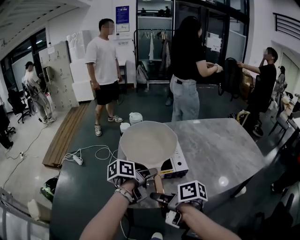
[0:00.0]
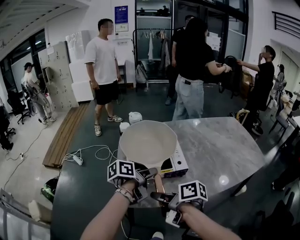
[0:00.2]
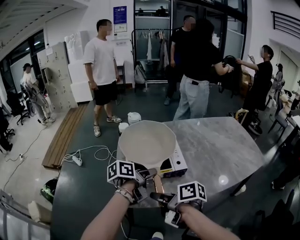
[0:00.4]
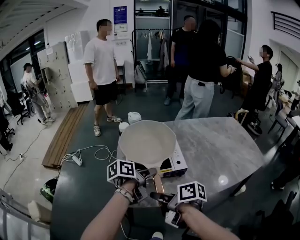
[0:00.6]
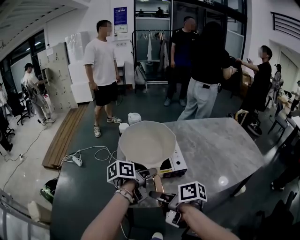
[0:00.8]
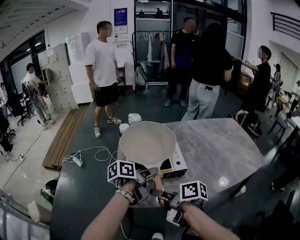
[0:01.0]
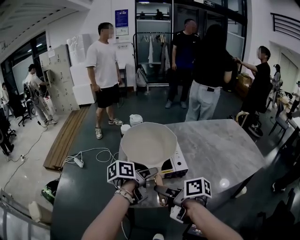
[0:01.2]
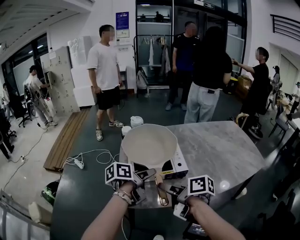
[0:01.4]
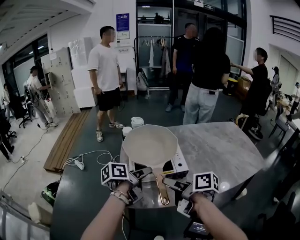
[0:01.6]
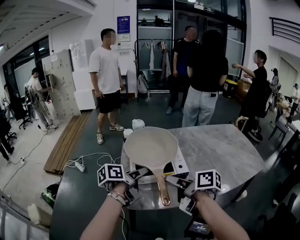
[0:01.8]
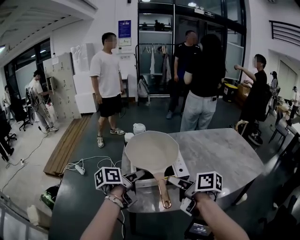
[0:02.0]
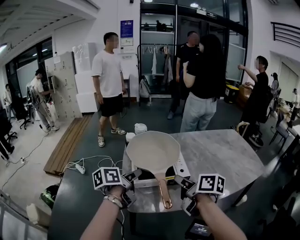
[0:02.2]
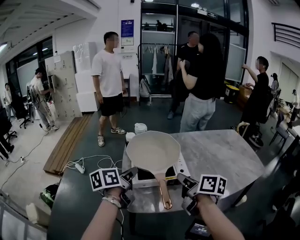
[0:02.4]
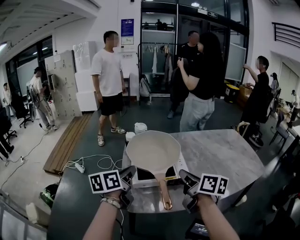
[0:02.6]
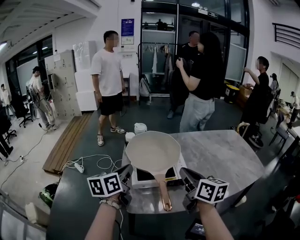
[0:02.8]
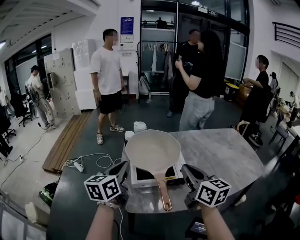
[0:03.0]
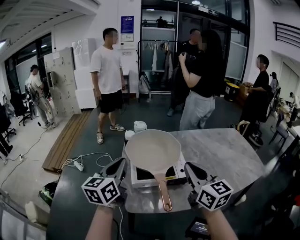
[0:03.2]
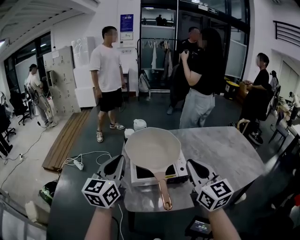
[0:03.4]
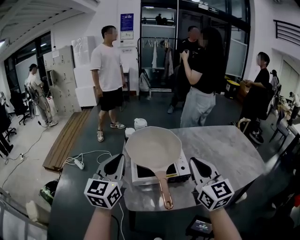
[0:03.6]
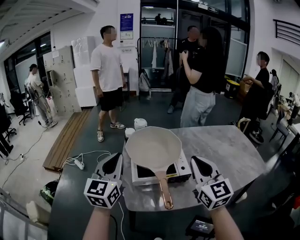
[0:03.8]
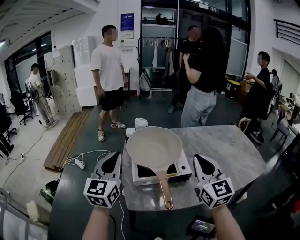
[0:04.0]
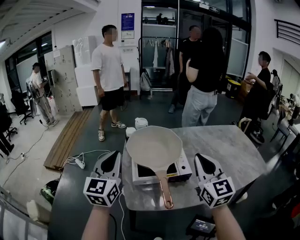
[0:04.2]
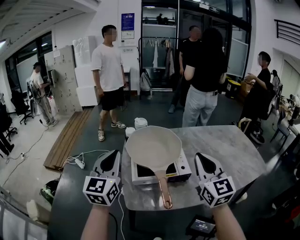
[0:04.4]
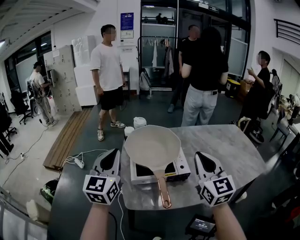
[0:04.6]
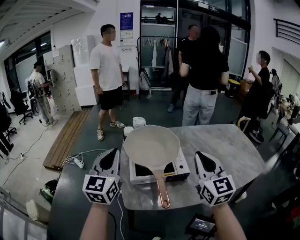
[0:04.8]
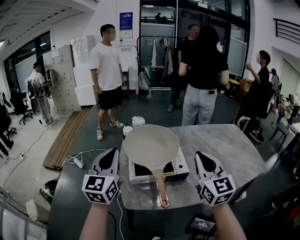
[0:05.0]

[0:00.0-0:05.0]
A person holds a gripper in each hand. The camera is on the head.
0:00.0 to 0:01.6: The right gripper shifts approximately 5 cm to the right, and opens its fingers.
0:01.6 to 0:03.4: The right gripper travels upward and to the right by roughly 10 cm, rotates around the line of its fingers by some 70 degrees, counterclockwise from behind, and closes its fingers; the left gripper travels upward and to the left by some 15 cm, rolls clockwise, seen from behind, by roughly 50 degrees, and closes its fingers.
0:03.4 to 0:05.0: The grippers make only small movements.

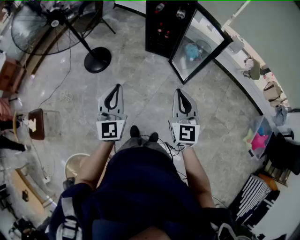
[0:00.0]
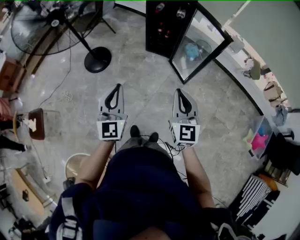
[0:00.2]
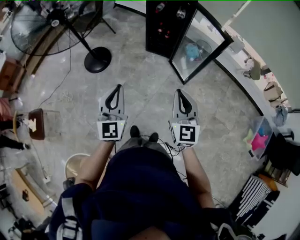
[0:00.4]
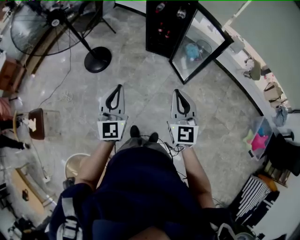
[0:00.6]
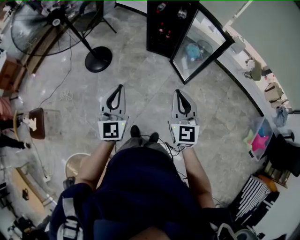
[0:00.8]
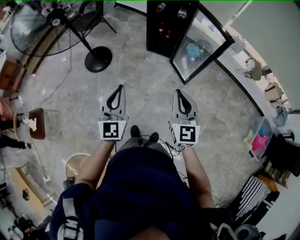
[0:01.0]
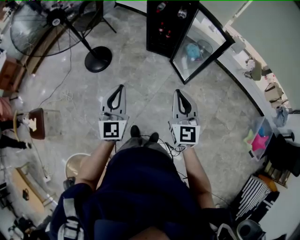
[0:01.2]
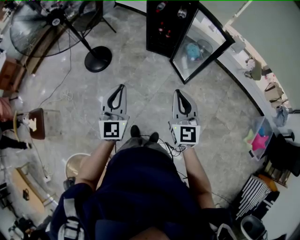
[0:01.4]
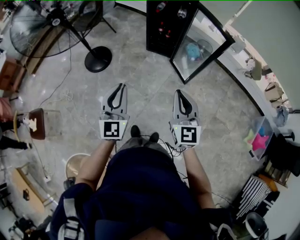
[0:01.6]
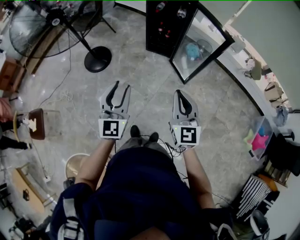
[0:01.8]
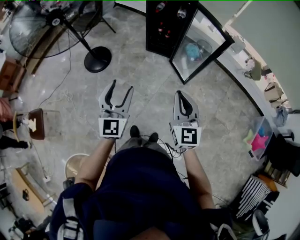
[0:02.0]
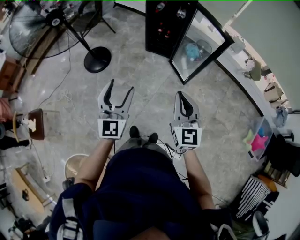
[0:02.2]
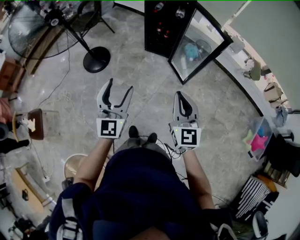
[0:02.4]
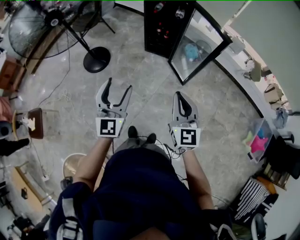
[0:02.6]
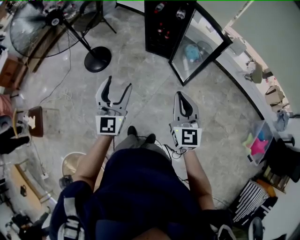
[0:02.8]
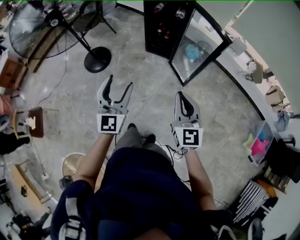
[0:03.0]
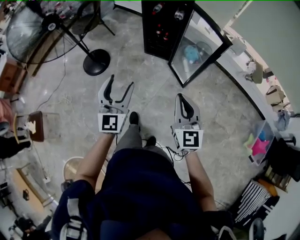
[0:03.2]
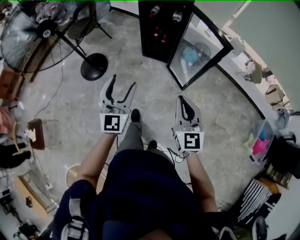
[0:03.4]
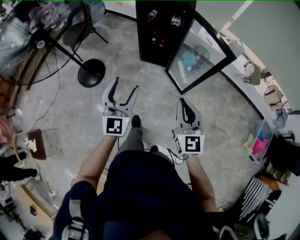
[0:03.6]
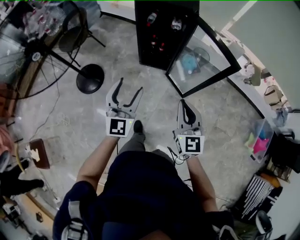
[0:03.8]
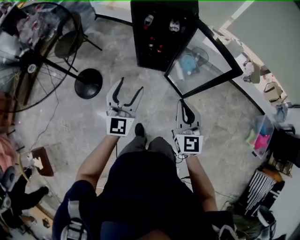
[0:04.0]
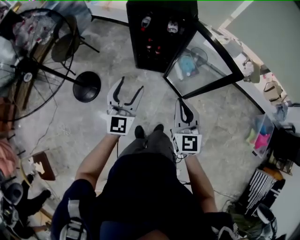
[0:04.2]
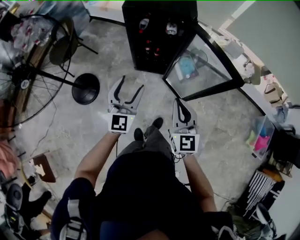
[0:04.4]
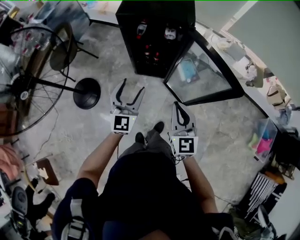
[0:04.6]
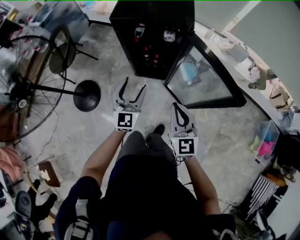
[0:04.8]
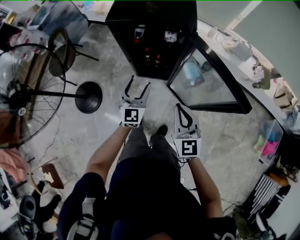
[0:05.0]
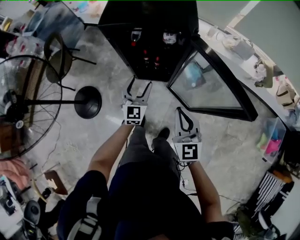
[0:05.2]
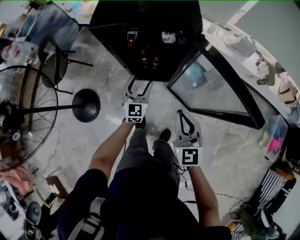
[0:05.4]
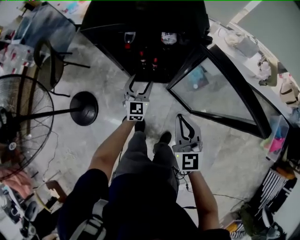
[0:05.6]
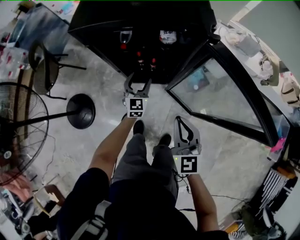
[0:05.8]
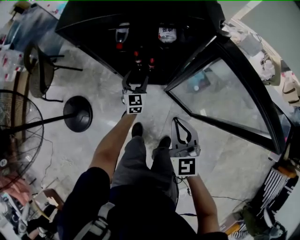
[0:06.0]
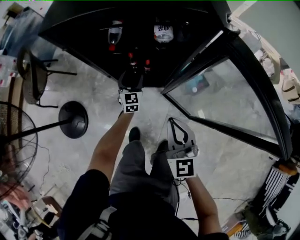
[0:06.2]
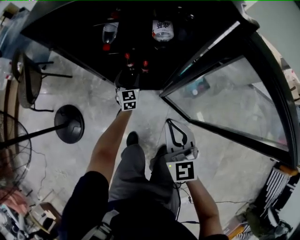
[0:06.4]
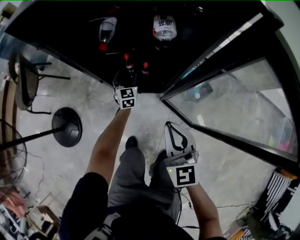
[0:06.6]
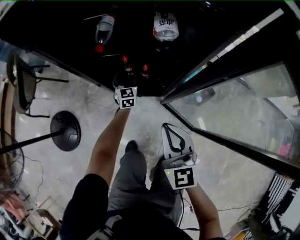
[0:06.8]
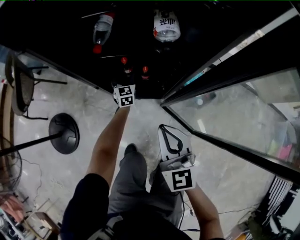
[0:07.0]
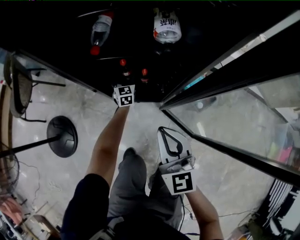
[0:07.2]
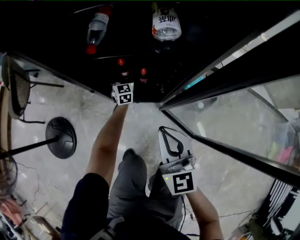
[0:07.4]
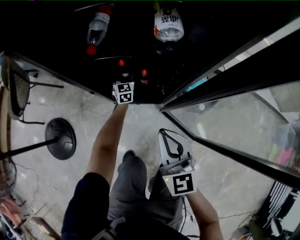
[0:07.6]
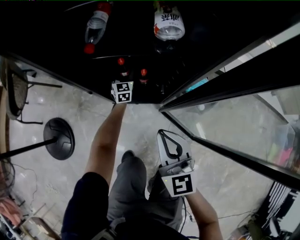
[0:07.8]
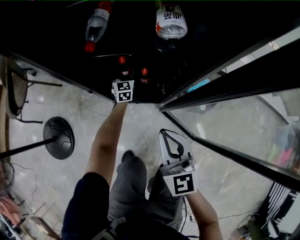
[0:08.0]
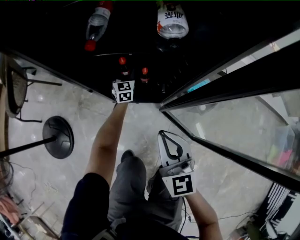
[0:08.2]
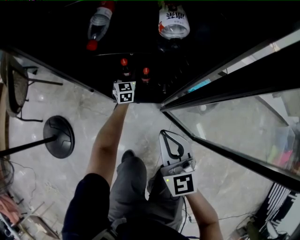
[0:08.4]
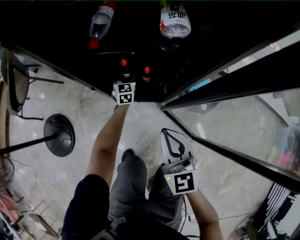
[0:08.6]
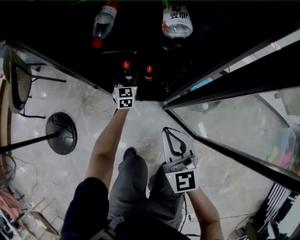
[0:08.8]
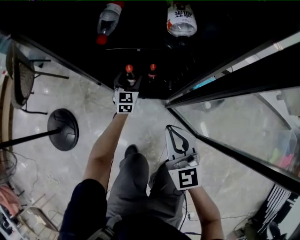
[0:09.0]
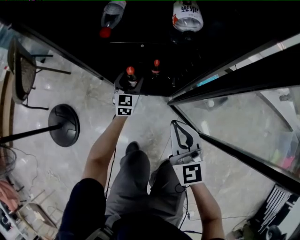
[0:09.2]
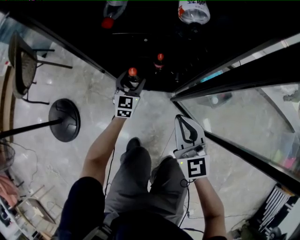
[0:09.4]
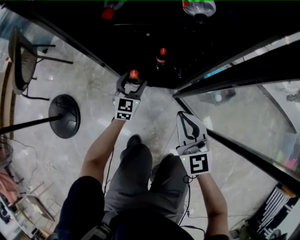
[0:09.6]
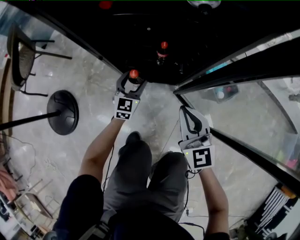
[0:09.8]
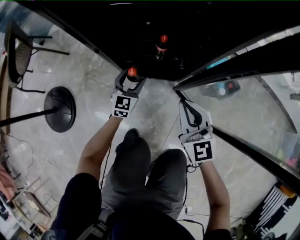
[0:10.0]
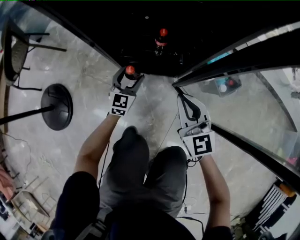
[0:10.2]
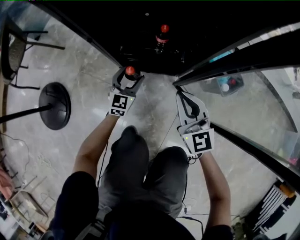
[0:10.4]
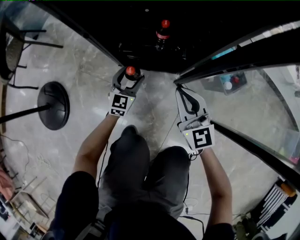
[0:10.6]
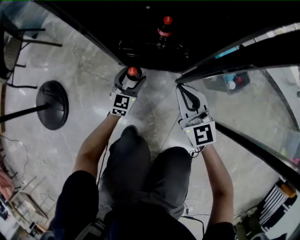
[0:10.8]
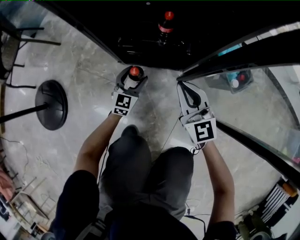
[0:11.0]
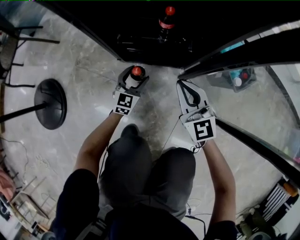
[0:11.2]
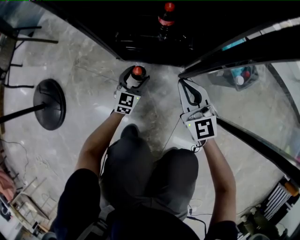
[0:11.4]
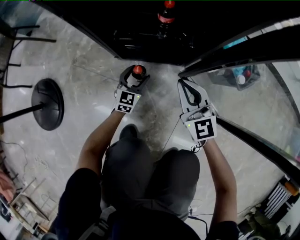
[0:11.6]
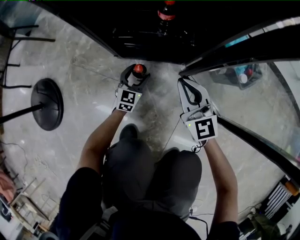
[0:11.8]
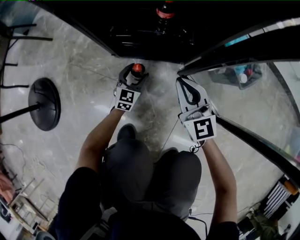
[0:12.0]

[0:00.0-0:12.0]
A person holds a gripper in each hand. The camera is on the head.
0:00.0 to 0:01.6: The grippers stay close to where they were, moving slightly.
0:01.6 to 0:03.0: The grippers both shift to the right by some 5 cm. The left gripper opens its fingers.
0:03.0 to 0:04.4: The two grippers go roughly 35 cm forward.
0:04.4 to 0:06.0: The left gripper is displaced downward and forward by about 60 cm; the right gripper heads downward and forward, covering about 30 cm.
0:06.0 to 0:07.6: The right gripper goes some 20 cm downward and forward. The left gripper moves downward and forward, about 35 cm.
0:07.6 to 0:09.0: The left gripper shifts approximately 5 cm backward.
0:09.0 to 0:10.4: The left gripper is displaced backward and downward by approximately 20 cm; the right gripper travels downward by some 15 cm.
0:10.4 to 0:12.0: Both grippers travel together downward, roughly 15 cm.

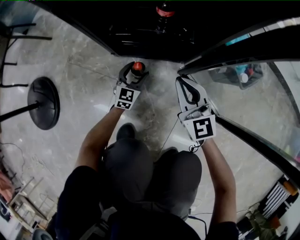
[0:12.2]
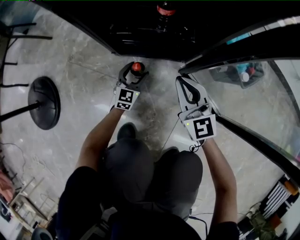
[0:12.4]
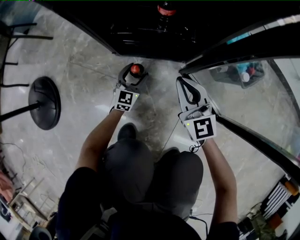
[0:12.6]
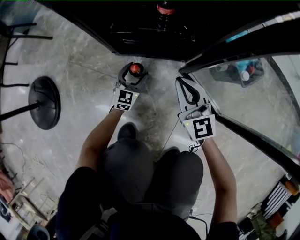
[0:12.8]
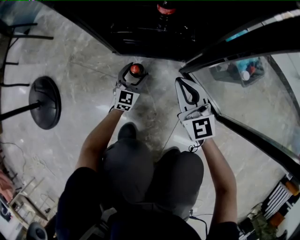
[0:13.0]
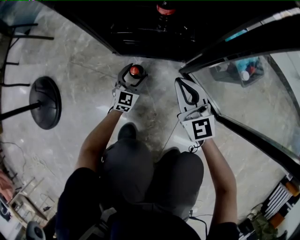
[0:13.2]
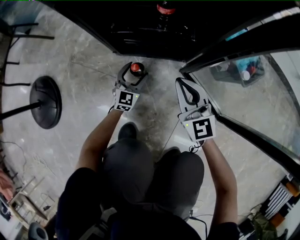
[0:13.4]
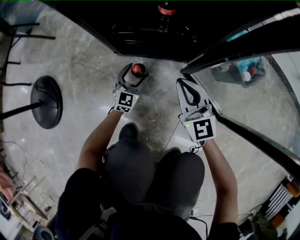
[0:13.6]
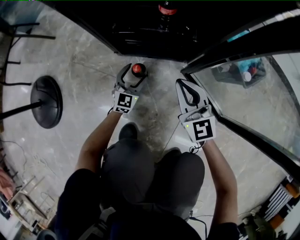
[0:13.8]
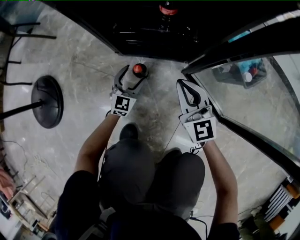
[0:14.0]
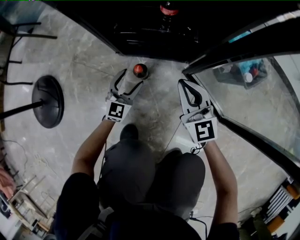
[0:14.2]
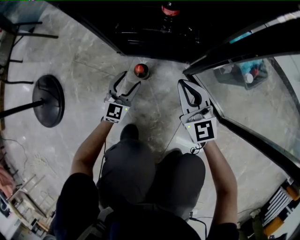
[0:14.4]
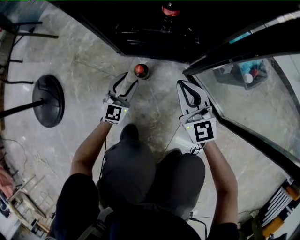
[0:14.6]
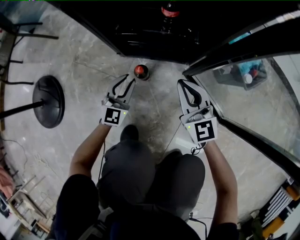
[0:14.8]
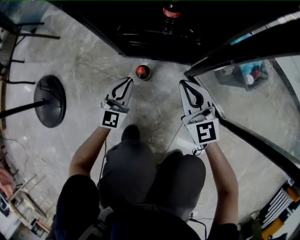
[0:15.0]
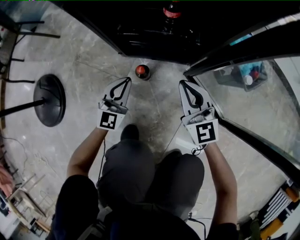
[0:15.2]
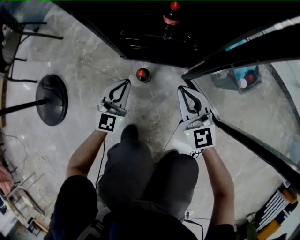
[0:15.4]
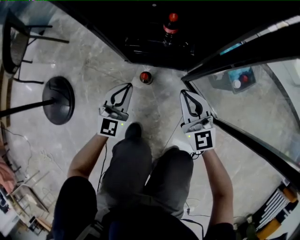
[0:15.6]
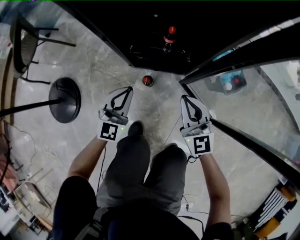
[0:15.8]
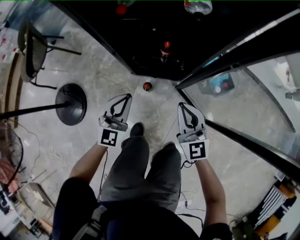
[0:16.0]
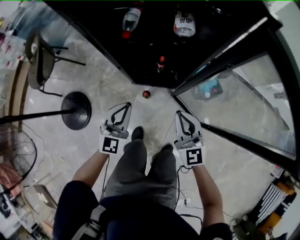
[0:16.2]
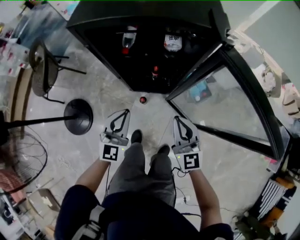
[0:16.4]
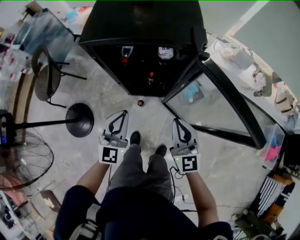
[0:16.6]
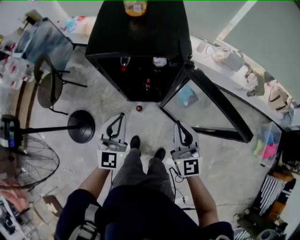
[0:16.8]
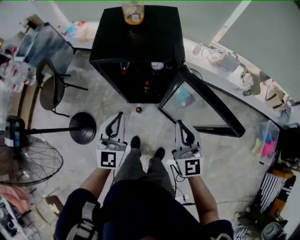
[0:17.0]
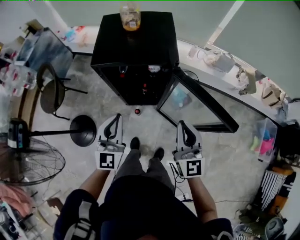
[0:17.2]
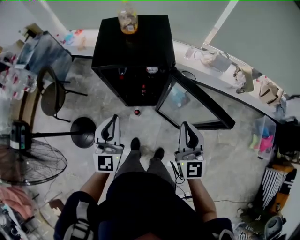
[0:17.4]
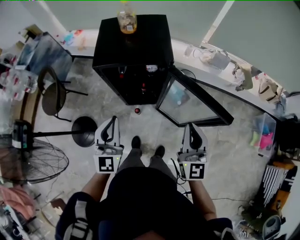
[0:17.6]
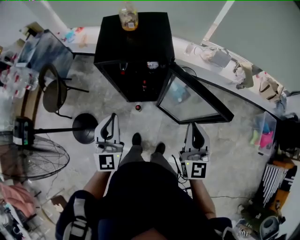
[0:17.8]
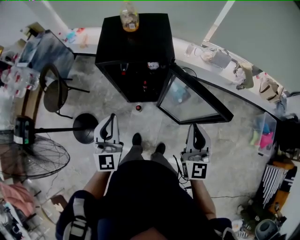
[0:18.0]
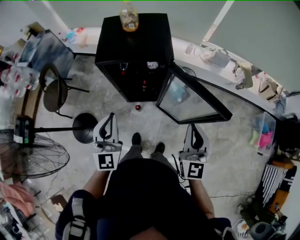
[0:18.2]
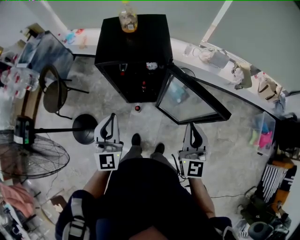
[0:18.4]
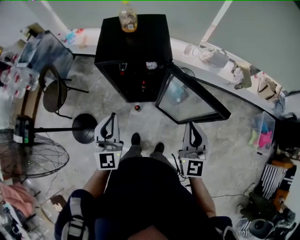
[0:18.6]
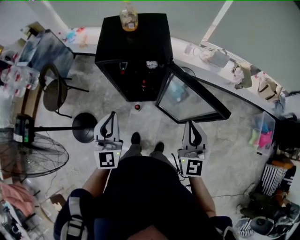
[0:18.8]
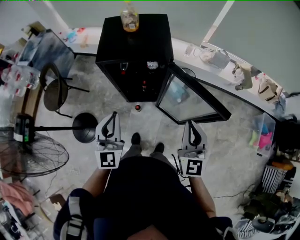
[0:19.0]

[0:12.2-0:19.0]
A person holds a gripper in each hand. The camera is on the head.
0:12.2 to 0:13.6: The grippers stay close to where they were, moving slightly.
0:13.6 to 0:15.0: The left gripper is displaced upward by roughly 10 cm, and closes its fingers.
0:15.0 to 0:16.2: Both grippers travel together upward, roughly 40 cm.
0:16.2 to 0:17.6: The two grippers go roughly 50 cm upward. The right gripper rotates roughly 30 degrees.
0:17.6 to 0:19.0: The grippers make only small movements.
